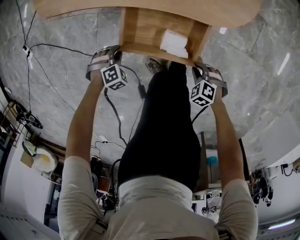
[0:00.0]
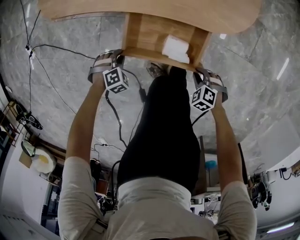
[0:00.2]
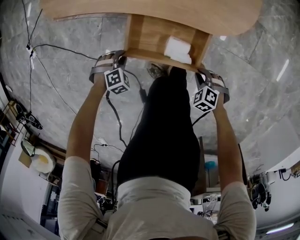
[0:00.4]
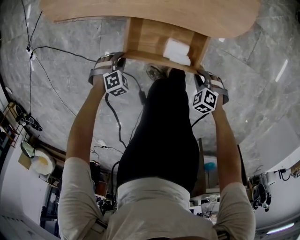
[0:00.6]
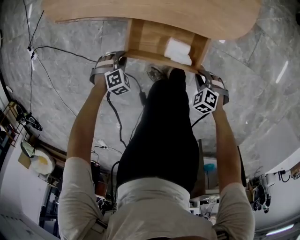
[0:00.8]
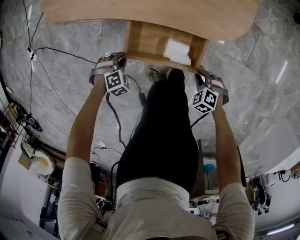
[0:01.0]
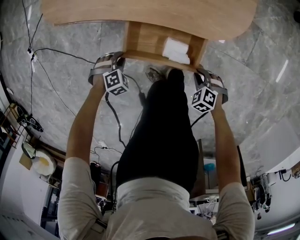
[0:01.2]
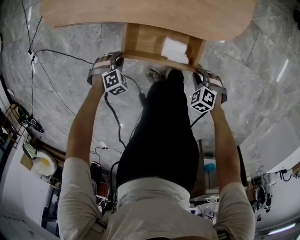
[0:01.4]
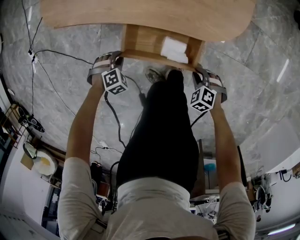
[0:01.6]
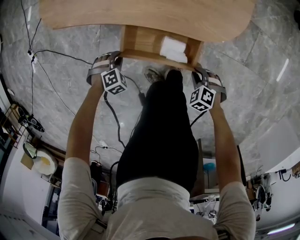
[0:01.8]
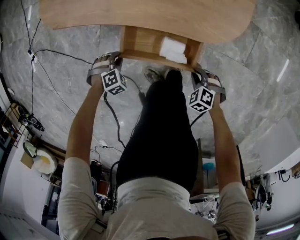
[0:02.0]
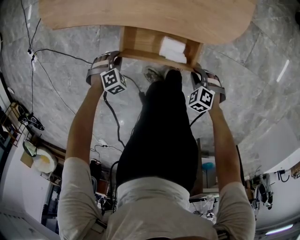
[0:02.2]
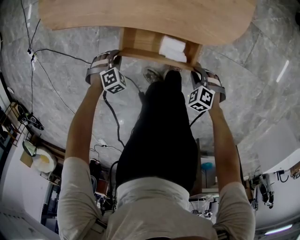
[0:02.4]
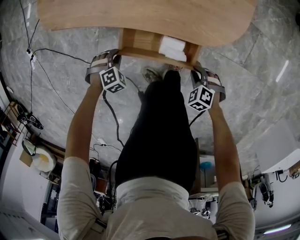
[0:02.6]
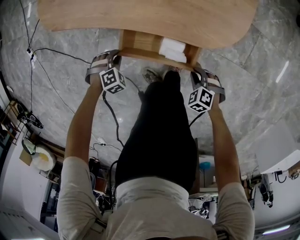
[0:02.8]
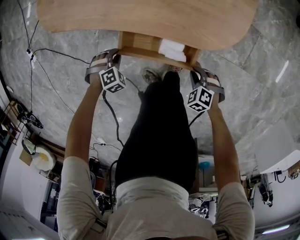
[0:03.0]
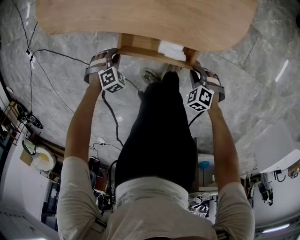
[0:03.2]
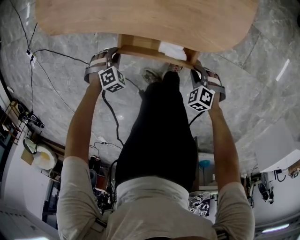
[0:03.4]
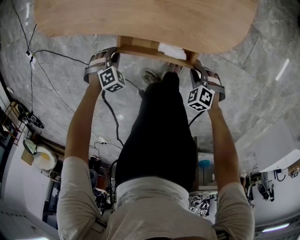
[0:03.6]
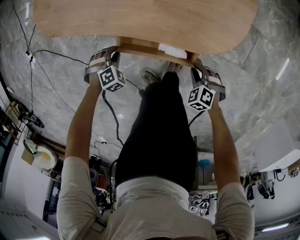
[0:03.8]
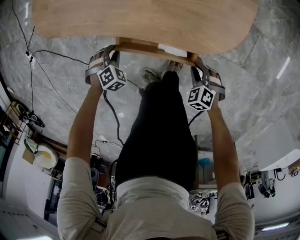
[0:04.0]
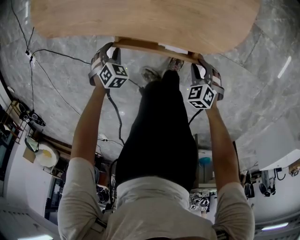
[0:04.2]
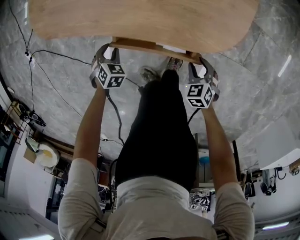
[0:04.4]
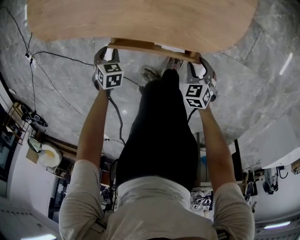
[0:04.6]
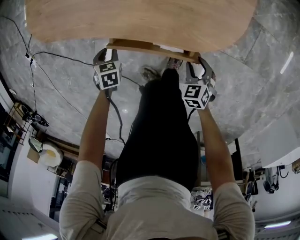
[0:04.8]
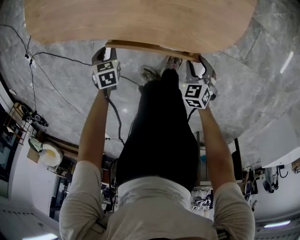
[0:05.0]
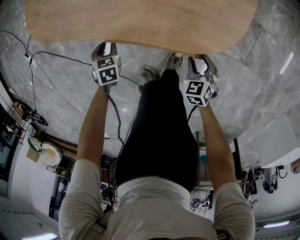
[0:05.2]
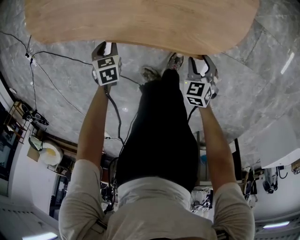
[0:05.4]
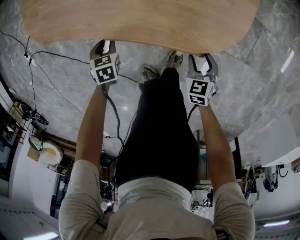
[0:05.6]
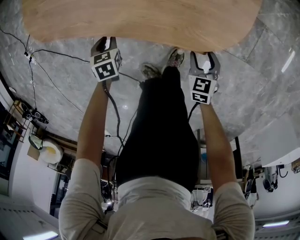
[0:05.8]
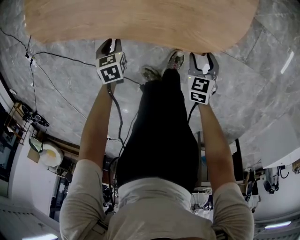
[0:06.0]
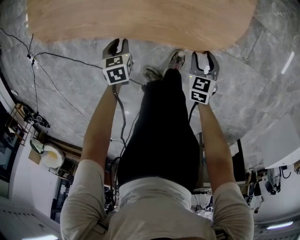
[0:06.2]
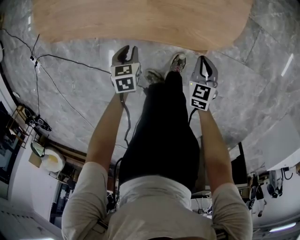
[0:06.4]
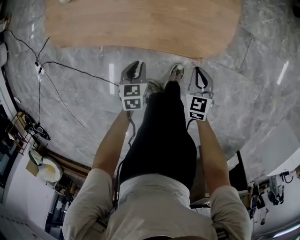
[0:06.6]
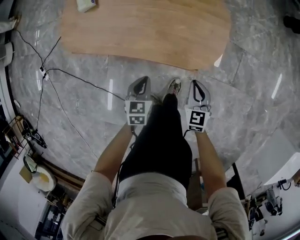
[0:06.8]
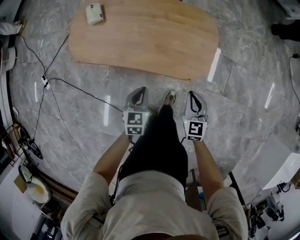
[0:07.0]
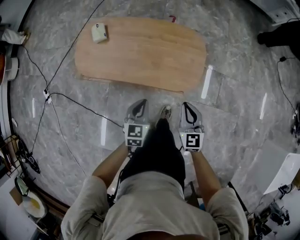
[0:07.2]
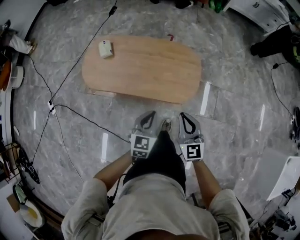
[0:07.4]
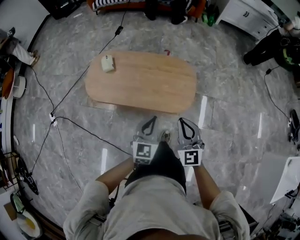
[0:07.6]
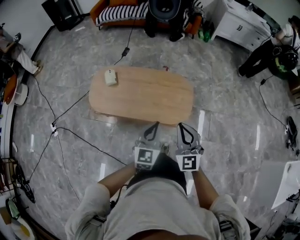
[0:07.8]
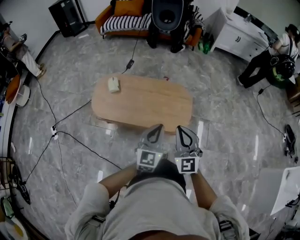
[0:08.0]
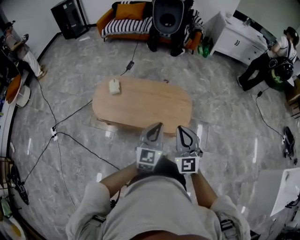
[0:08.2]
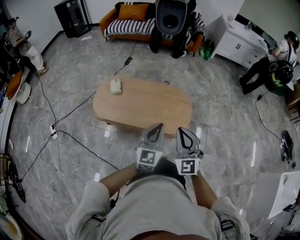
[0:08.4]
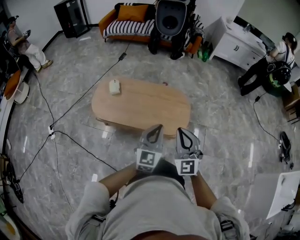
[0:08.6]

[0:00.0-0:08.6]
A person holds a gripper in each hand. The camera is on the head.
0:00.0 to 0:01.4: The right gripper moves some 5 cm.
0:01.4 to 0:02.8: The grippers make only small movements.
0:02.8 to 0:04.4: The right gripper changes place by approximately 10 cm, changes its angle by approximately 30 degrees, and opens up. Meanwhile the left gripper moves roughly 5 cm, and rotates approximately 40 degrees.
0:04.4 to 0:05.8: The left gripper rotates about 30 degrees. The right gripper moves approximately 5 cm, and changes its angle by about 20 degrees.
0:05.8 to 0:07.2: The left gripper shifts roughly 35 cm upward and to the right, angles its fingers upward, by some 30 degrees, and closes its fingers; the right gripper heads upward, covering some 35 cm, tips its fingers upward by about 30 degrees, and closes.
0:07.2 to 0:08.6: The two grippers go approximately 25 cm upward. The right gripper swivels about 30 degrees; the left gripper angles its fingers upward, by about 30 degrees.

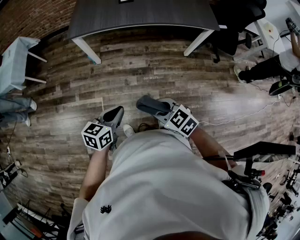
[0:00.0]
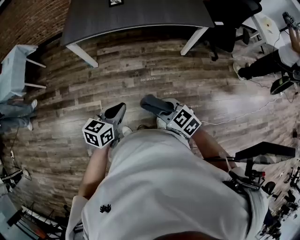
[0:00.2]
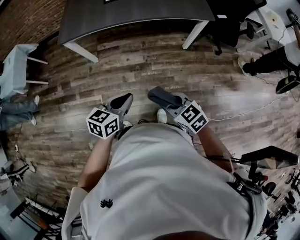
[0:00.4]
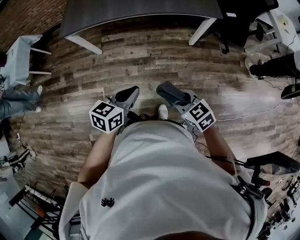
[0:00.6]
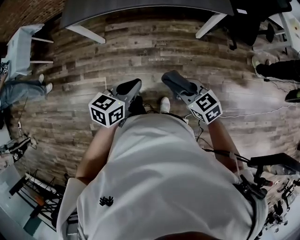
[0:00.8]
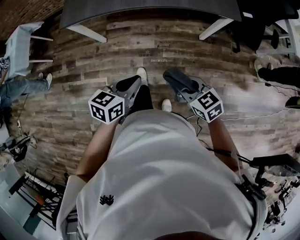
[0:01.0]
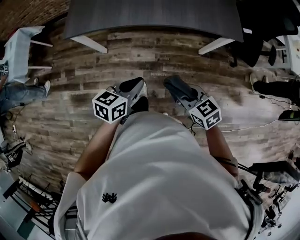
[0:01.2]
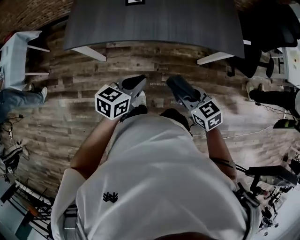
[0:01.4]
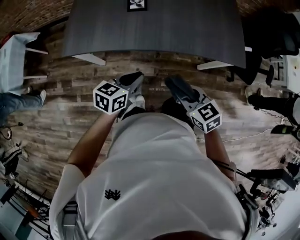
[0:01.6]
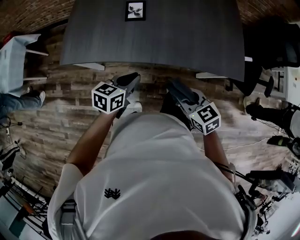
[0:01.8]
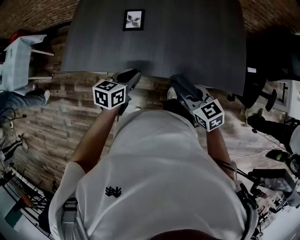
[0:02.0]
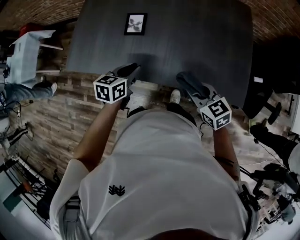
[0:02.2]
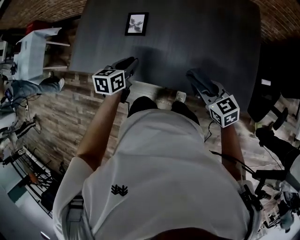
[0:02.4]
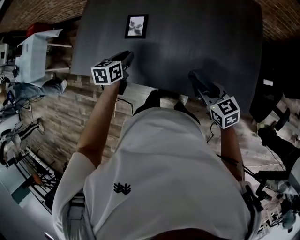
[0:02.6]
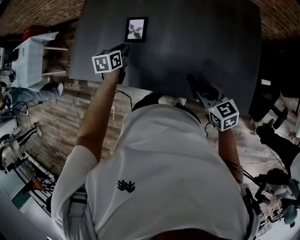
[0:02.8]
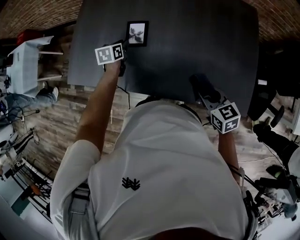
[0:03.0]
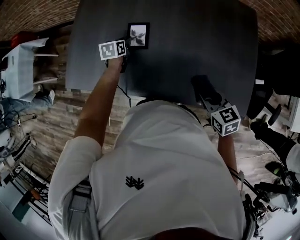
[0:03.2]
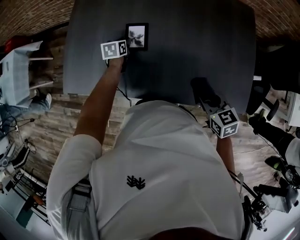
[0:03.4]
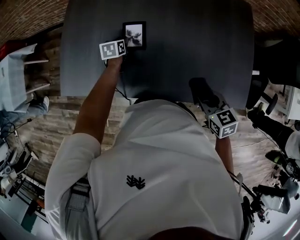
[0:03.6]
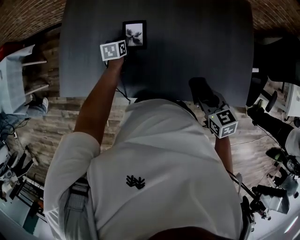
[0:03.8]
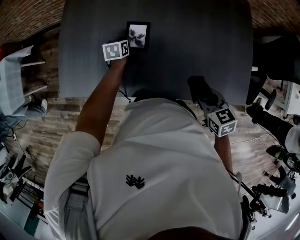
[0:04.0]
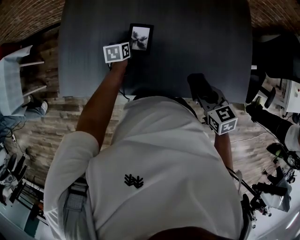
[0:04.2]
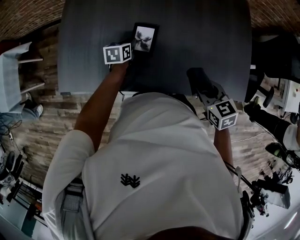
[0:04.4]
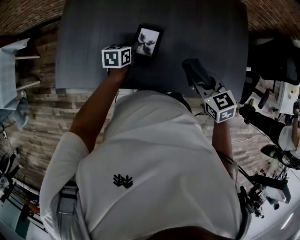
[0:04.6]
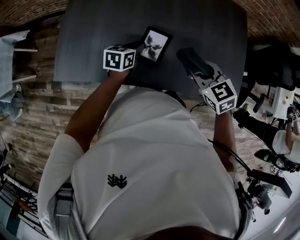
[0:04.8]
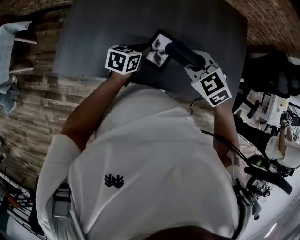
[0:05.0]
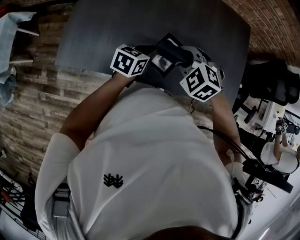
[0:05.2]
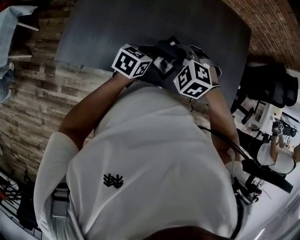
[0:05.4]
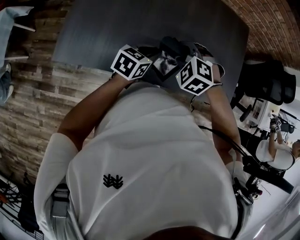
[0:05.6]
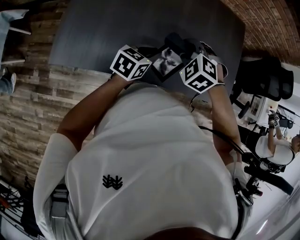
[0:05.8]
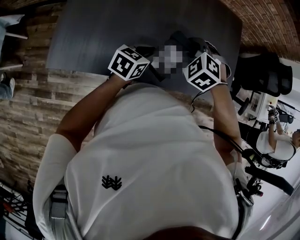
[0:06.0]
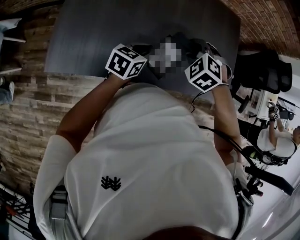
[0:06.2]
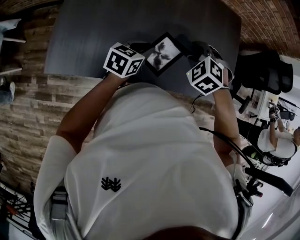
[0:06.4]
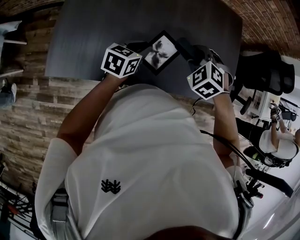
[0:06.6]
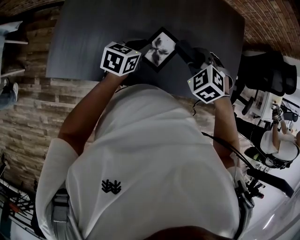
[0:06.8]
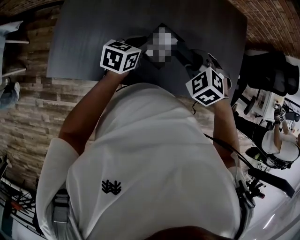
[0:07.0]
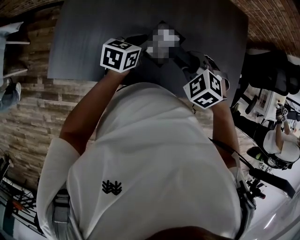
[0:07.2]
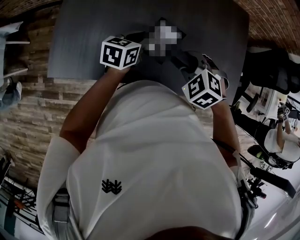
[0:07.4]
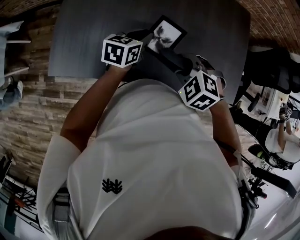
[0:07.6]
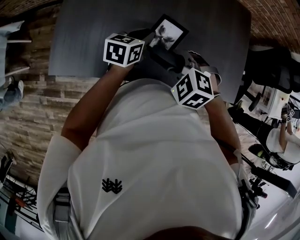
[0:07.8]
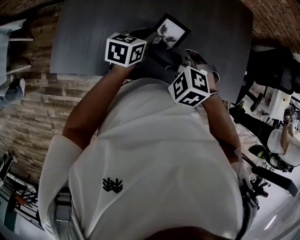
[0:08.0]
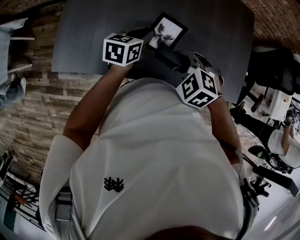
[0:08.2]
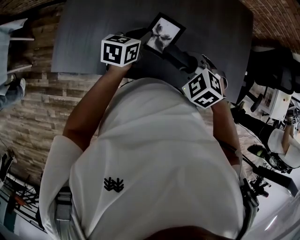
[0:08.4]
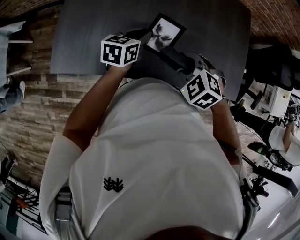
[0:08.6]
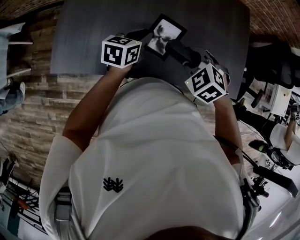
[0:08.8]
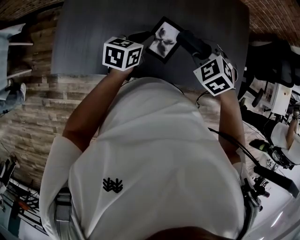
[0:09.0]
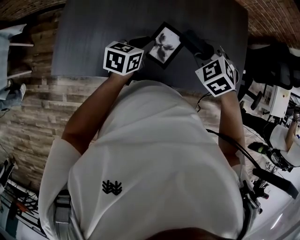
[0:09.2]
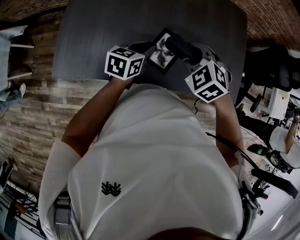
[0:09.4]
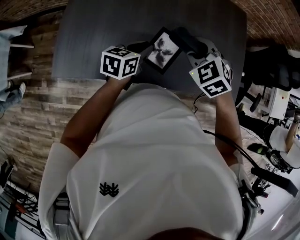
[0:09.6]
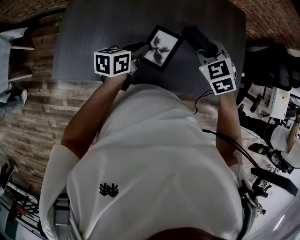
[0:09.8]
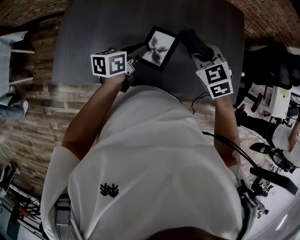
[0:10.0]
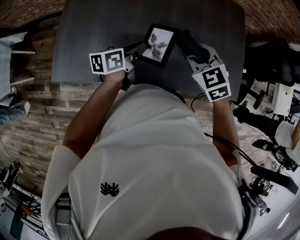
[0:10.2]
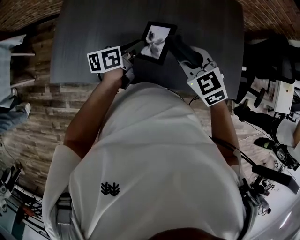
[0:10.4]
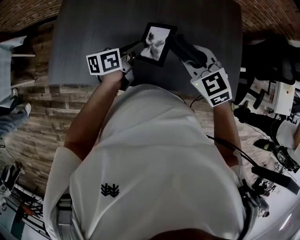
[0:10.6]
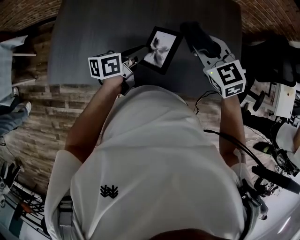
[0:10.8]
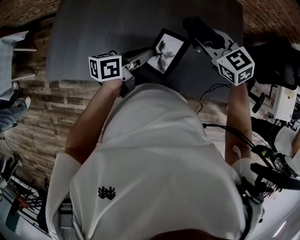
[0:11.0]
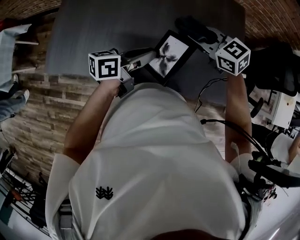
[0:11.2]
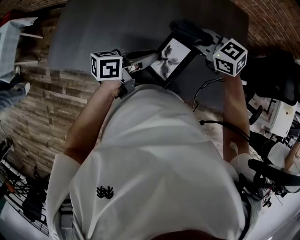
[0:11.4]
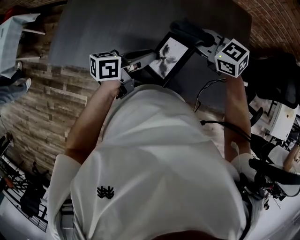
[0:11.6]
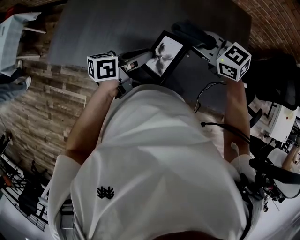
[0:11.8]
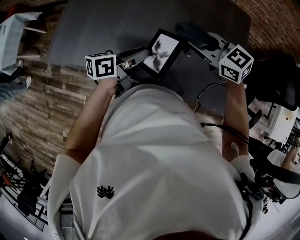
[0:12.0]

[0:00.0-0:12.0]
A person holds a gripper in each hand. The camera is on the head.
0:00.0 to 0:01.6: The two grippers travel together, forward, some 40 cm.
0:01.6 to 0:03.0: The right gripper travels forward and to the right by roughly 35 cm, while the left gripper goes about 40 cm forward, and turns by some 40 degrees.
0:03.0 to 0:04.4: The left gripper is displaced downward by about 5 cm, while the right gripper goes about 10 cm to the left.
0:04.4 to 0:06.0: The right gripper shifts some 15 cm to the left and forward, and rotates around the line of its fingers by about 60 degrees, counterclockwise from behind, while the left gripper heads upward, backward and to the right, covering about 20 cm, and swivels approximately 30 degrees.
0:06.0 to 0:07.6: The left gripper moves forward, approximately 10 cm, while the right gripper ends up approximately 5 cm from where it was.
0:07.6 to 0:09.0: The right gripper travels to the right by roughly 5 cm.
0:09.0 to 0:10.4: The left gripper turns by about 30 degrees. The right gripper rotates about 20 degrees.
0:10.4 to 0:12.0: The left gripper shifts by about 15 cm. The right gripper shifts by about 15 cm, and changes its angle by approximately 30 degrees.

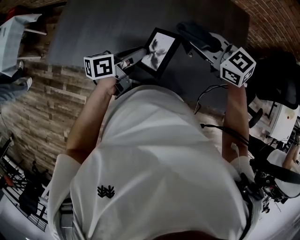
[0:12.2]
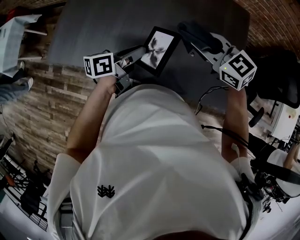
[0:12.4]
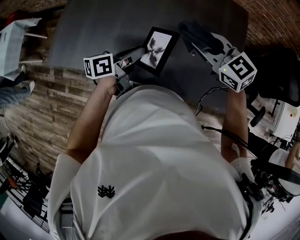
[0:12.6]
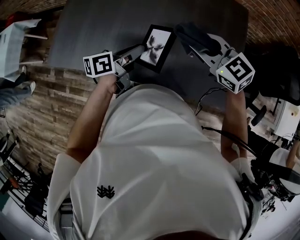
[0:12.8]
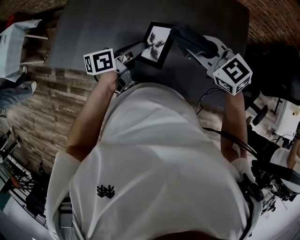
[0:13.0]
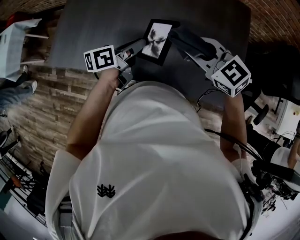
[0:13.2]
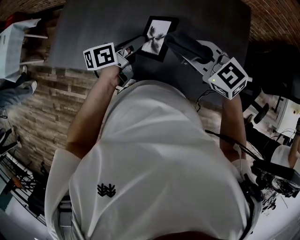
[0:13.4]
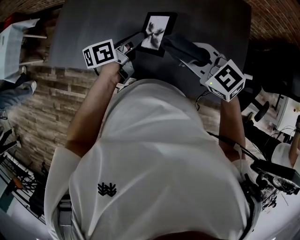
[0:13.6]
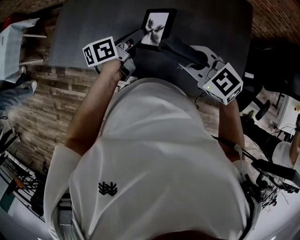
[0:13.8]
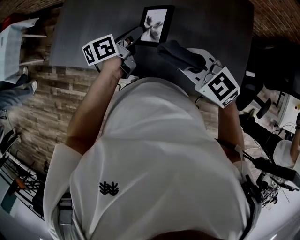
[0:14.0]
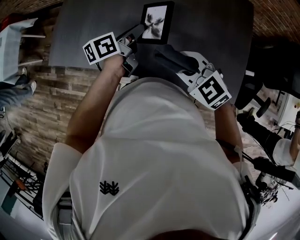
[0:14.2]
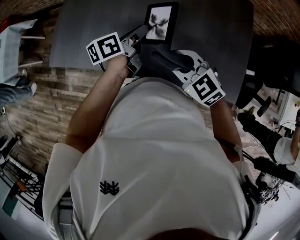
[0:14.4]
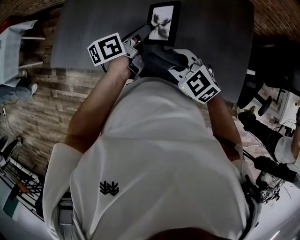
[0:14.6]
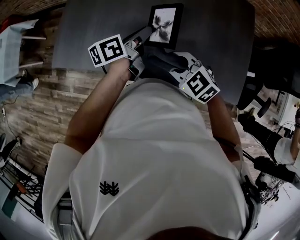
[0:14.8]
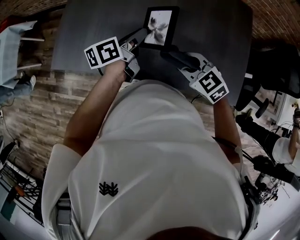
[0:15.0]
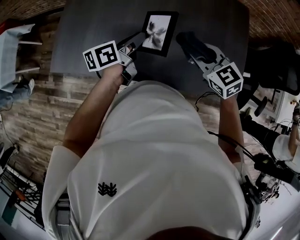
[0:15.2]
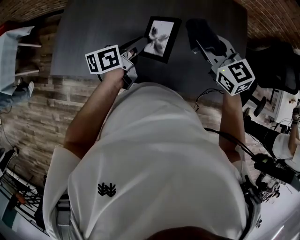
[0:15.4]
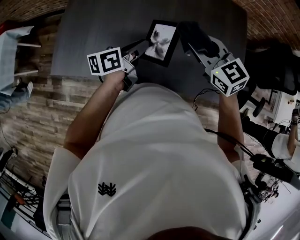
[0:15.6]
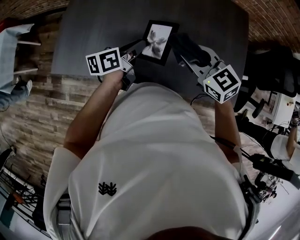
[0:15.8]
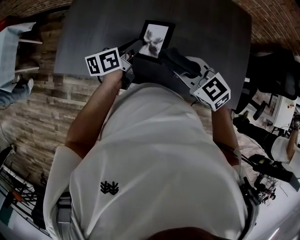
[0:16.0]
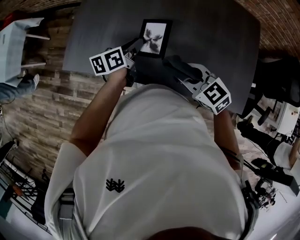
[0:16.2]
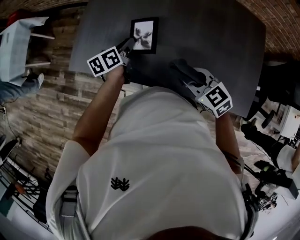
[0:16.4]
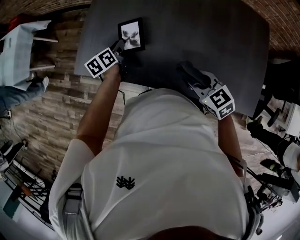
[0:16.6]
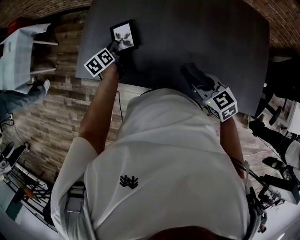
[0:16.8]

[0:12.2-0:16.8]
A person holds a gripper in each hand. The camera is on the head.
0:12.2 to 0:13.8: The right gripper travels backward and to the left by roughly 10 cm, while the left gripper goes about 5 cm forward.
0:13.8 to 0:15.2: The right gripper shifts some 5 cm forward. The left gripper shifts roughly 5 cm to the left.
0:15.2 to 0:16.8: The right gripper moves approximately 15 cm; the left gripper changes place by roughly 35 cm, and changes its angle by roughly 40 degrees.
